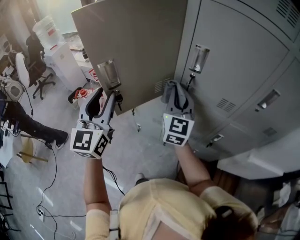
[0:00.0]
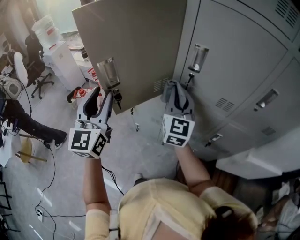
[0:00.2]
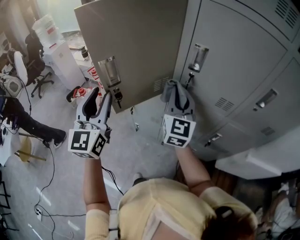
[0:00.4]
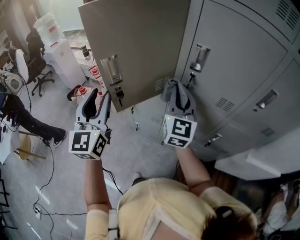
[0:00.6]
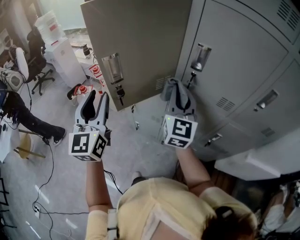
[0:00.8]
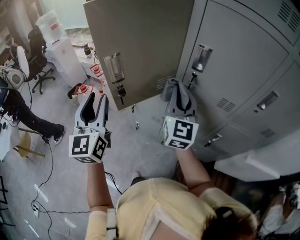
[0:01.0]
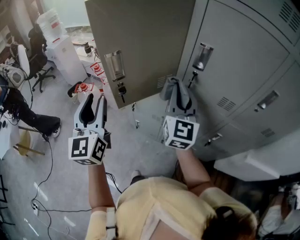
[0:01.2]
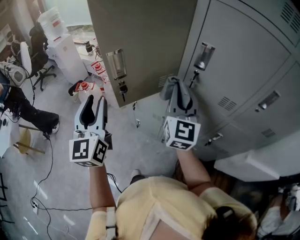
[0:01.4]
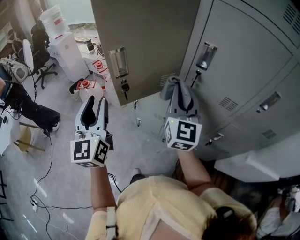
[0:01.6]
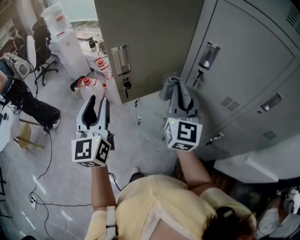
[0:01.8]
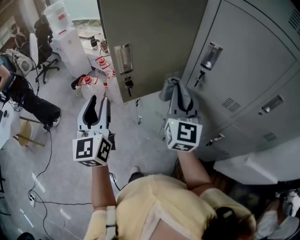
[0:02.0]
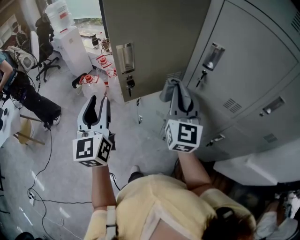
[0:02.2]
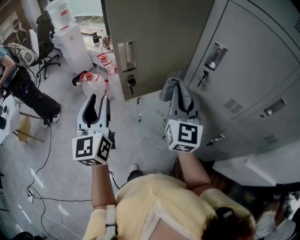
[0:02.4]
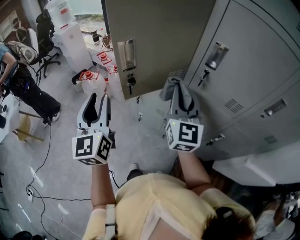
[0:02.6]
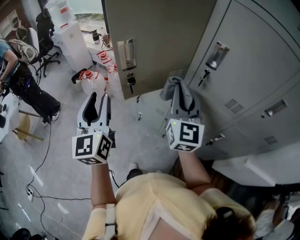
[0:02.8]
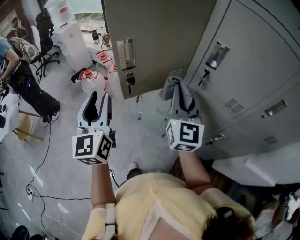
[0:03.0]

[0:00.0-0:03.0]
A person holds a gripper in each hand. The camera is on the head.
0.0 to 1.6 s: Both grippers move backward, some 5 cm.
1.6 to 3.0 s: The grippers make only small movements.

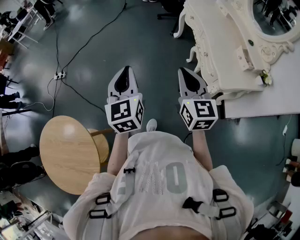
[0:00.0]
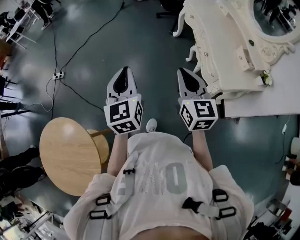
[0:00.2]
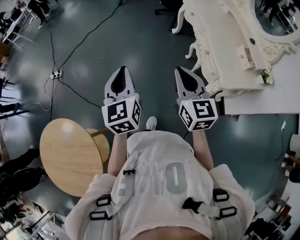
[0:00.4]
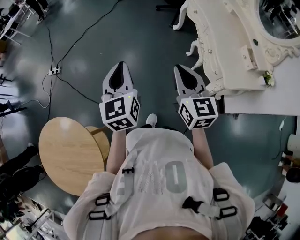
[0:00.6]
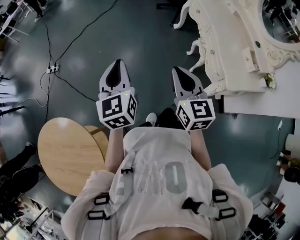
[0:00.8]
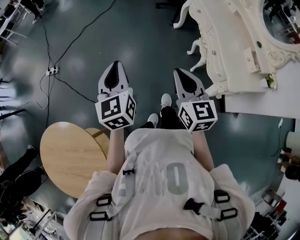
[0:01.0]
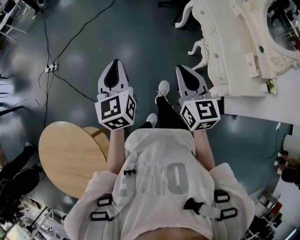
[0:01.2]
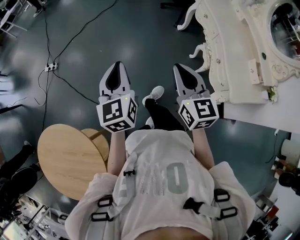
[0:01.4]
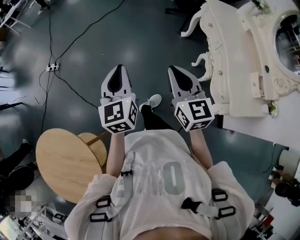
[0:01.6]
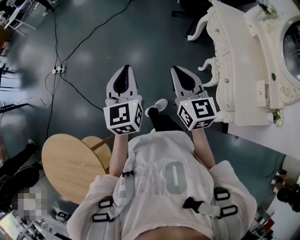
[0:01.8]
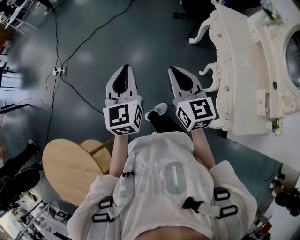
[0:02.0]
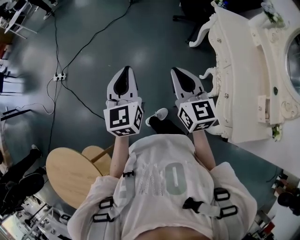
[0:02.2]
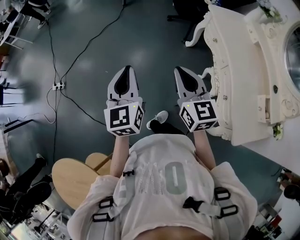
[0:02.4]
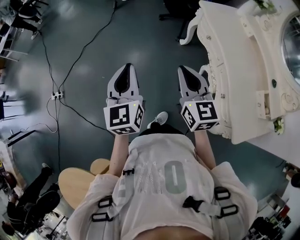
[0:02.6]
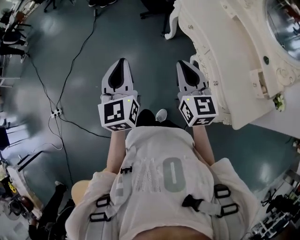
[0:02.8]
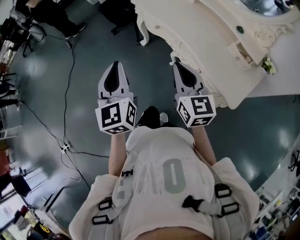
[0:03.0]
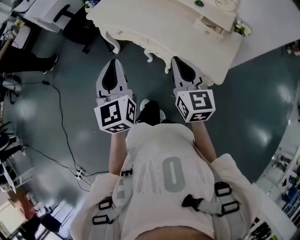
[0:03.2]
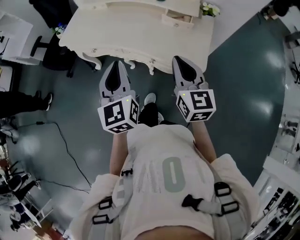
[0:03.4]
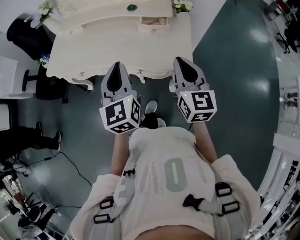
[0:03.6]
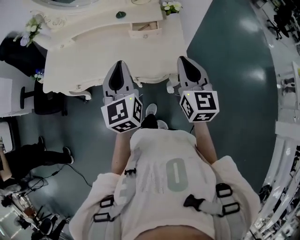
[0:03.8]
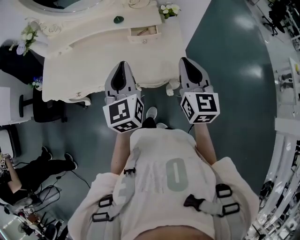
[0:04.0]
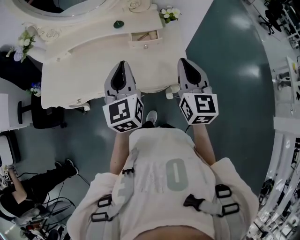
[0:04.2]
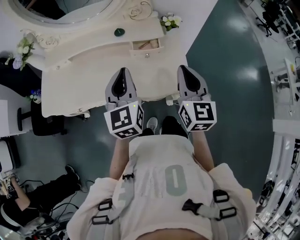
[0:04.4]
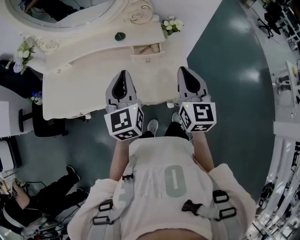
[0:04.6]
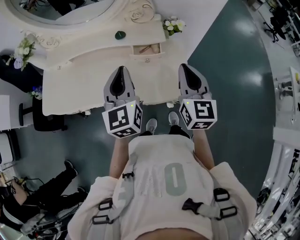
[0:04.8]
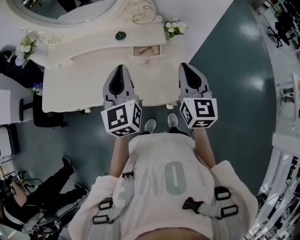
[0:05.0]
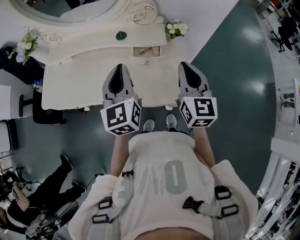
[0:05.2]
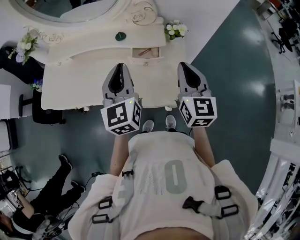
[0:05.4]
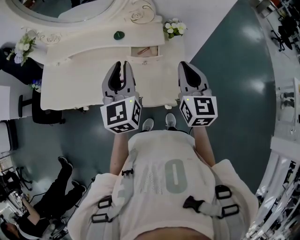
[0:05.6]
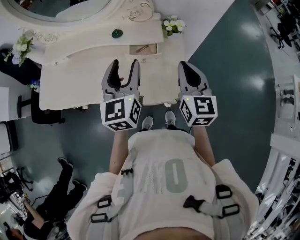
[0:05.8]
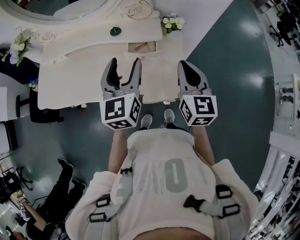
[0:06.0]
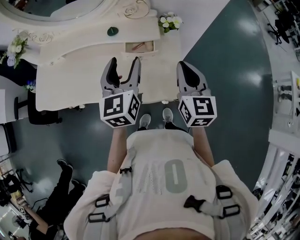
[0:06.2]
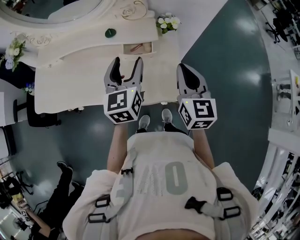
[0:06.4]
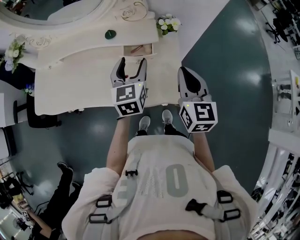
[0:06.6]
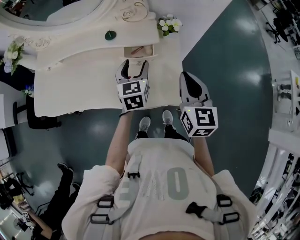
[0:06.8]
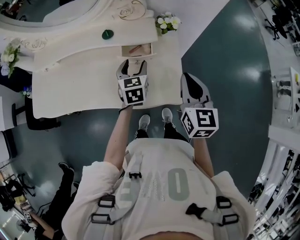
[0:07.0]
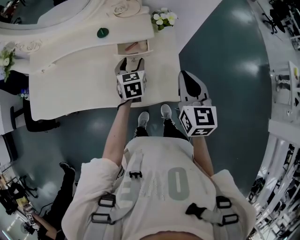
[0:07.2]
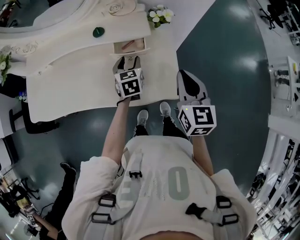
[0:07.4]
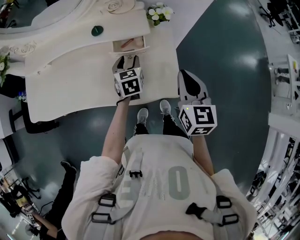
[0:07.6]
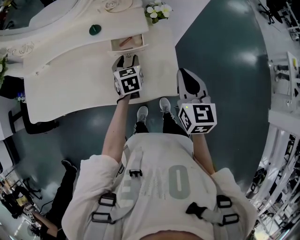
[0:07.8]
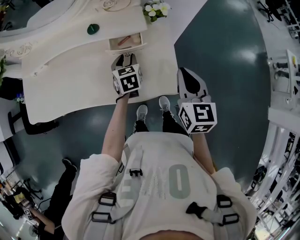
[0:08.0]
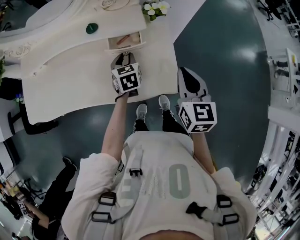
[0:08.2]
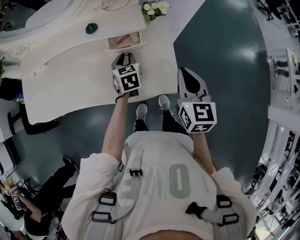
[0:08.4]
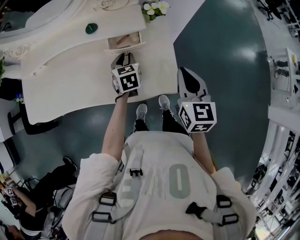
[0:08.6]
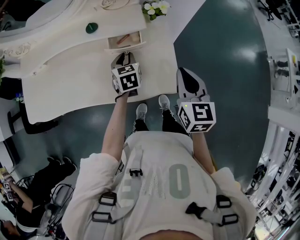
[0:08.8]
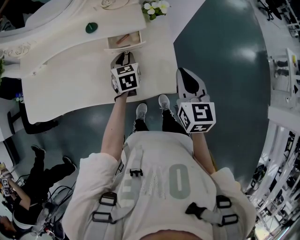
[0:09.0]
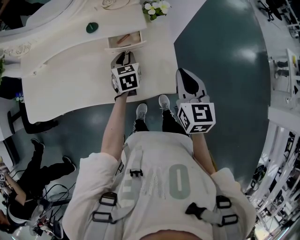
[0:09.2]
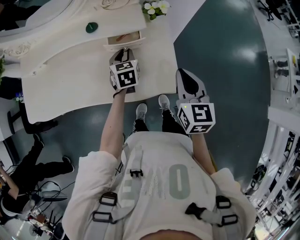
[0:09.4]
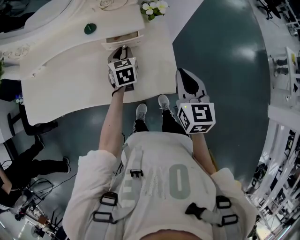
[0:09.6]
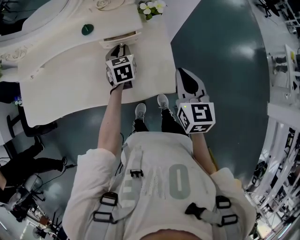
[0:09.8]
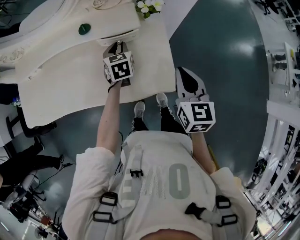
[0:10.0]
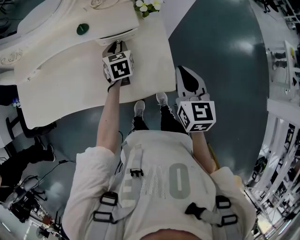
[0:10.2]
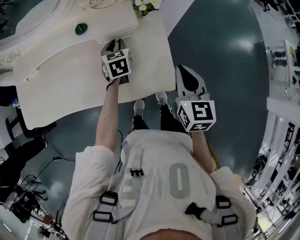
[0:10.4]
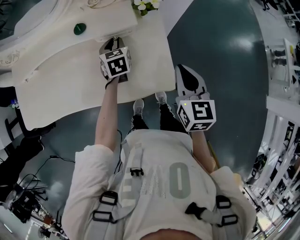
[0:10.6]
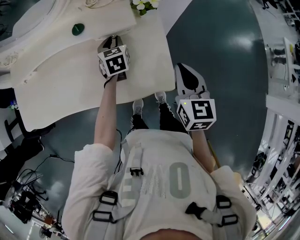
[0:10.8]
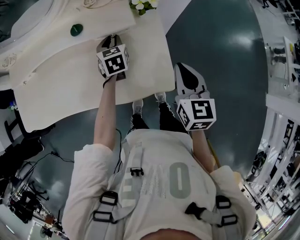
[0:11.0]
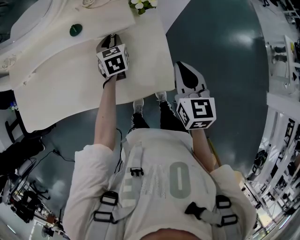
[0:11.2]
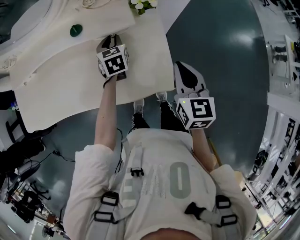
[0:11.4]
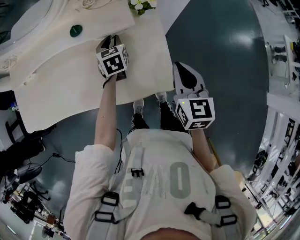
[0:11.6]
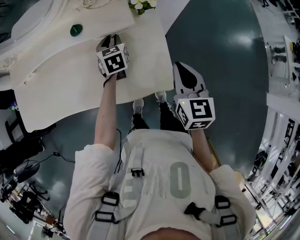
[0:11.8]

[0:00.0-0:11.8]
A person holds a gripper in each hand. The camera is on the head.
0.0 to 1.4 s: The grippers both shift forward and to the left by about 15 cm.
1.4 to 3.0 s: The right gripper changes place by roughly 30 cm, and swivels approximately 40 degrees. The left gripper moves about 40 cm, and swivels roughly 40 degrees.
3.0 to 4.4 s: The right gripper shifts by some 35 cm, and swivels approximately 60 degrees, while the left gripper shifts by approximately 40 cm, and rotates some 60 degrees.
4.4 to 6.0 s: The left gripper heads to the right and forward, covering approximately 10 cm, and opens its fingers. Meanwhile the right gripper heads forward and to the right, covering some 10 cm.
6.0 to 7.4 s: The right gripper changes place by approximately 5 cm; the left gripper goes roughly 25 cm downward and forward, and swivels about 30 degrees.
7.4 to 8.8 s: The left gripper closes.
8.8 to 10.4 s: The left gripper heads forward, covering approximately 5 cm.
10.4 to 11.8 s: The grippers make only small movements.

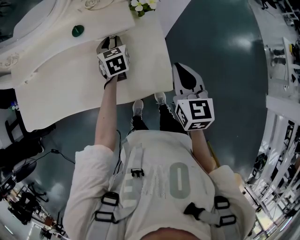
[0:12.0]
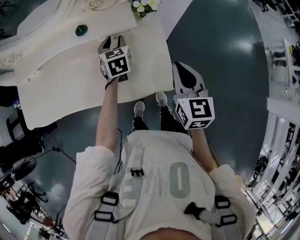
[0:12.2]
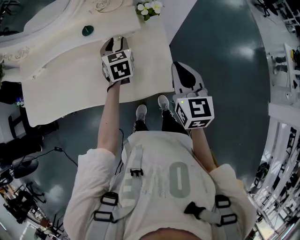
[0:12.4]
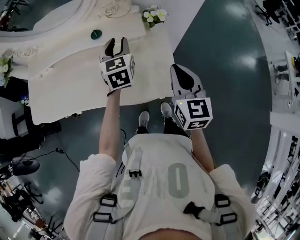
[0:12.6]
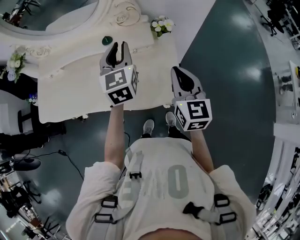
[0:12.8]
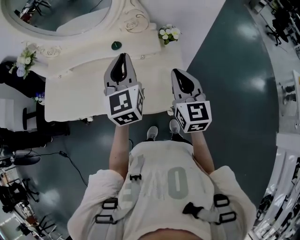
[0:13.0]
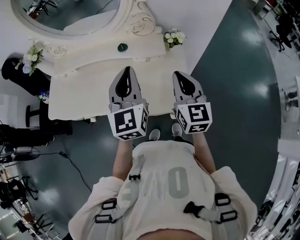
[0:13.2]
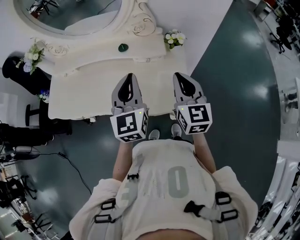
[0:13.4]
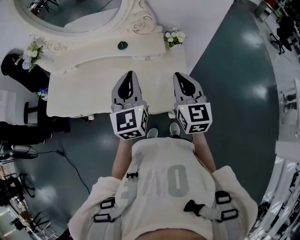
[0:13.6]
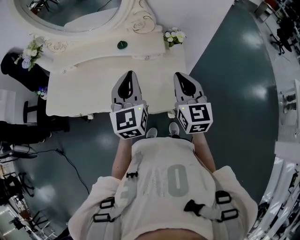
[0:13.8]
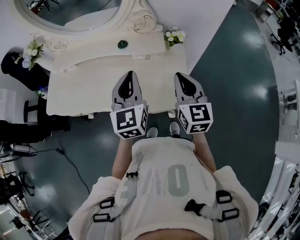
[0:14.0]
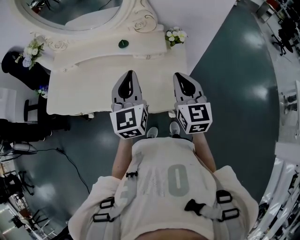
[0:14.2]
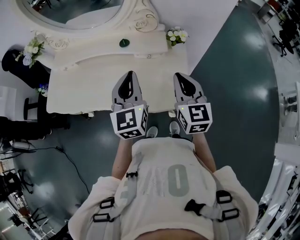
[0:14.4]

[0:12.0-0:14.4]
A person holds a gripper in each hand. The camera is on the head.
12.0 to 13.2 s: The right gripper shifts some 10 cm upward and to the left, while the left gripper shifts some 30 cm upward and backward, and tilts its fingers approximately 40 degrees upward.
13.2 to 14.4 s: The grippers make only small movements.

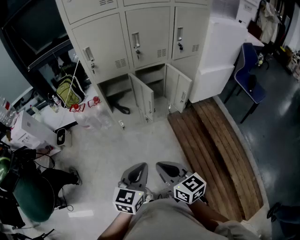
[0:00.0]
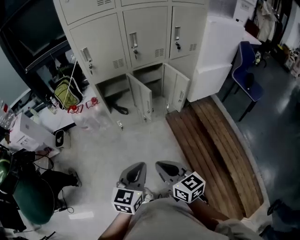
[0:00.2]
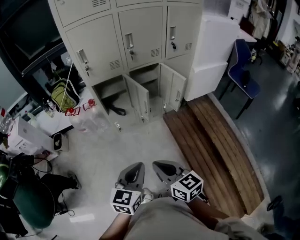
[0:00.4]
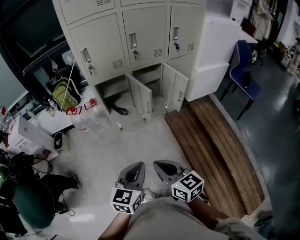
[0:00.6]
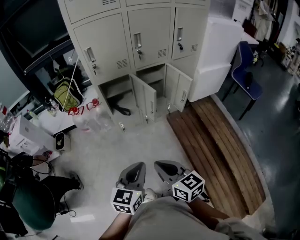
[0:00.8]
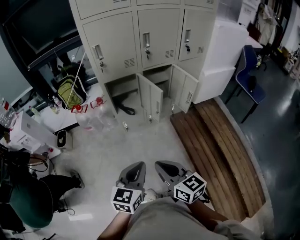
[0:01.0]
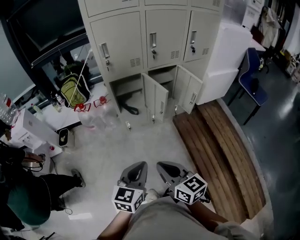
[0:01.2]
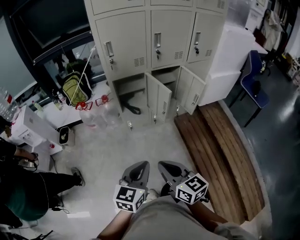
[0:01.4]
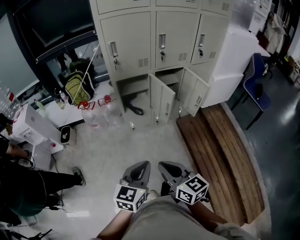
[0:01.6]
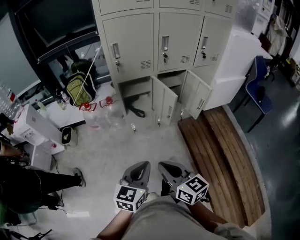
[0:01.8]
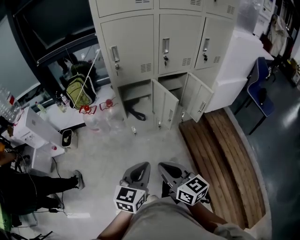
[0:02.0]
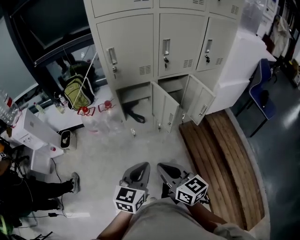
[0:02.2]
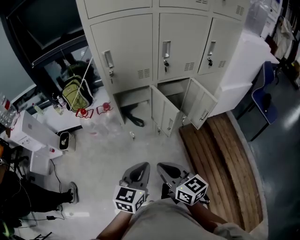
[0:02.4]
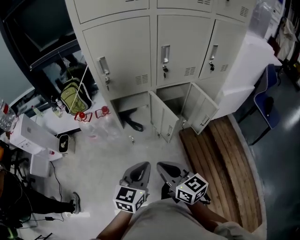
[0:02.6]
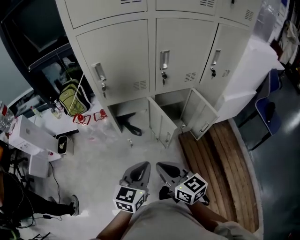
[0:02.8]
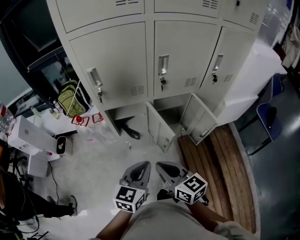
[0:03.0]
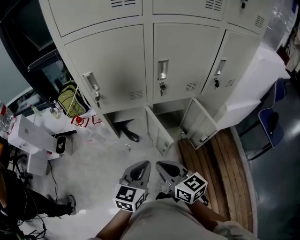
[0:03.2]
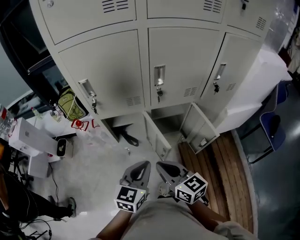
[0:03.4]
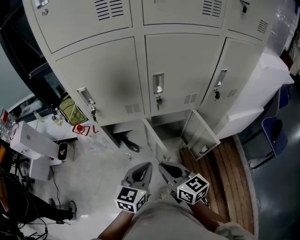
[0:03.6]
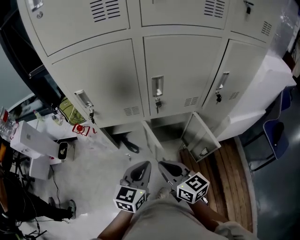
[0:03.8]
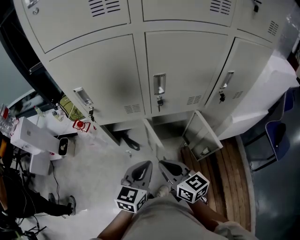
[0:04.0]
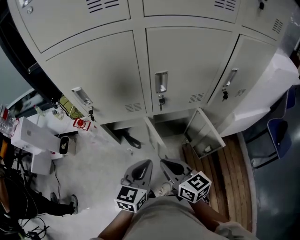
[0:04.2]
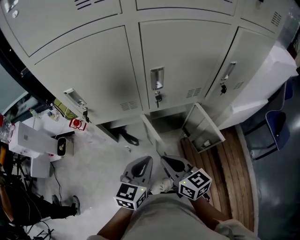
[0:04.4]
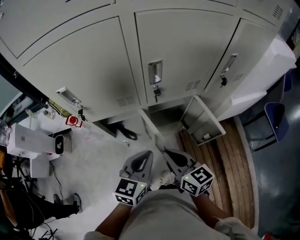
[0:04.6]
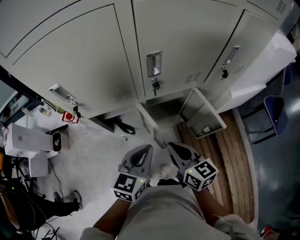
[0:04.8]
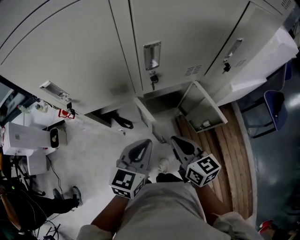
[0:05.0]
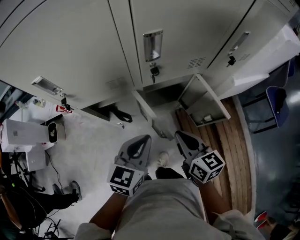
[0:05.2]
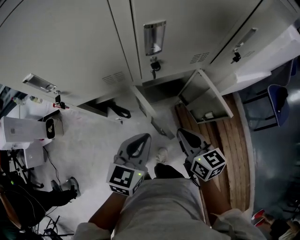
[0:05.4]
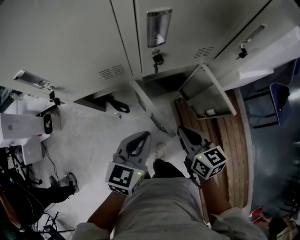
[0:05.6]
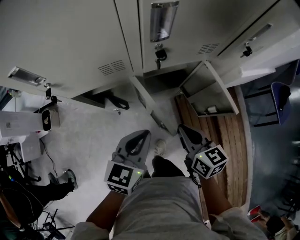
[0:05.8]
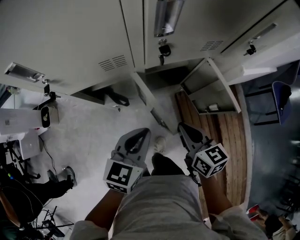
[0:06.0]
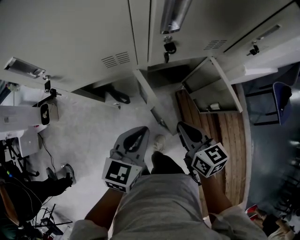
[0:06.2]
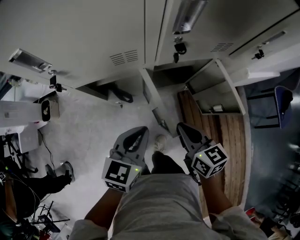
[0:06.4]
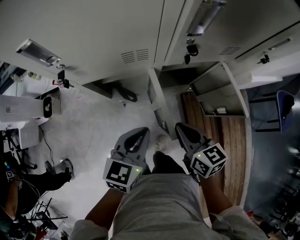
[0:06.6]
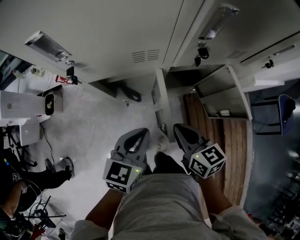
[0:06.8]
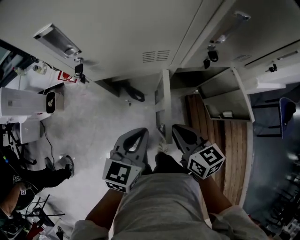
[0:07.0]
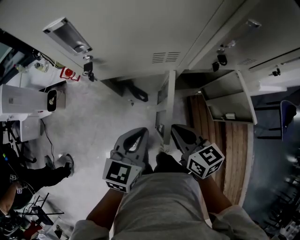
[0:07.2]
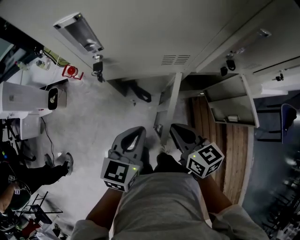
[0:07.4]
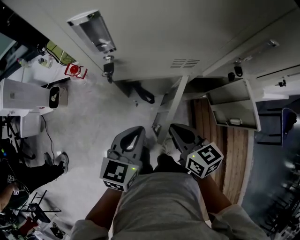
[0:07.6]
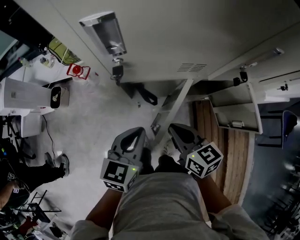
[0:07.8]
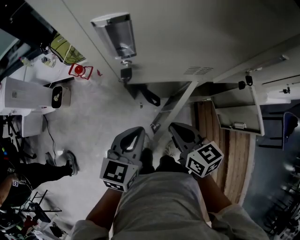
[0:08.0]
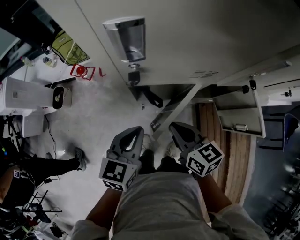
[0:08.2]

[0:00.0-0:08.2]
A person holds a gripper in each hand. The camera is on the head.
0.0 to 1.6 s: The grippers both shift to the left by about 10 cm.
1.6 to 3.2 s: The left gripper heads forward and to the right, covering some 30 cm. The right gripper heads forward, covering roughly 30 cm.
3.2 to 5.0 s: The right gripper shifts roughly 15 cm forward and to the right. Meanwhile the left gripper is displaced forward by some 15 cm.
5.0 to 6.6 s: The right gripper is displaced downward by roughly 10 cm, while the left gripper moves downward and to the left, about 10 cm.
6.6 to 8.2 s: Both grippers travel together to the left, approximately 15 cm.
